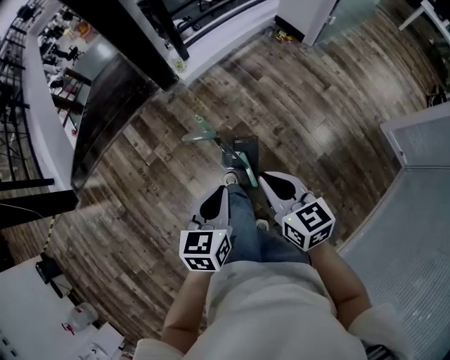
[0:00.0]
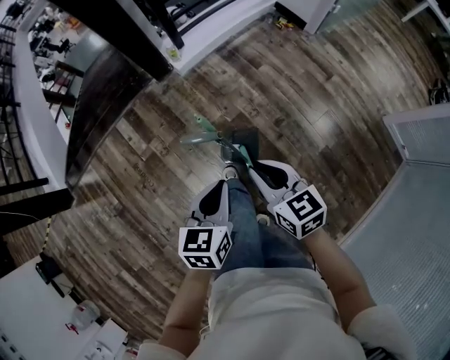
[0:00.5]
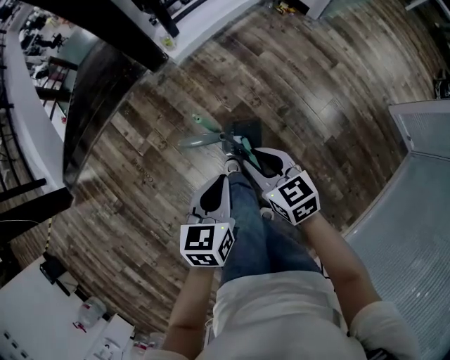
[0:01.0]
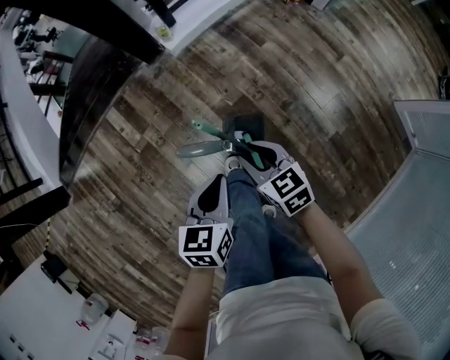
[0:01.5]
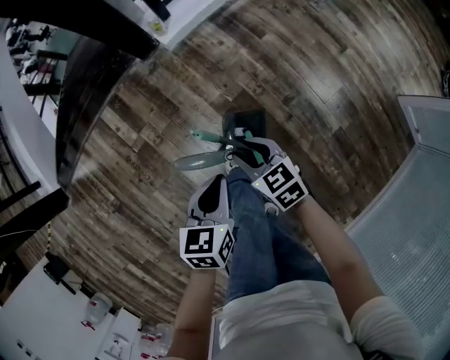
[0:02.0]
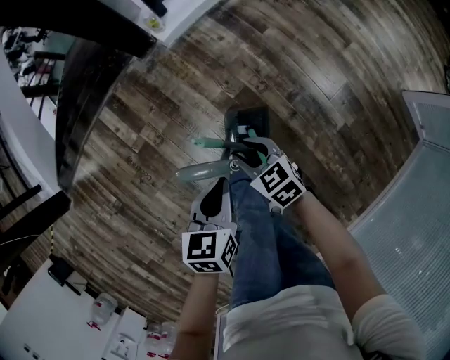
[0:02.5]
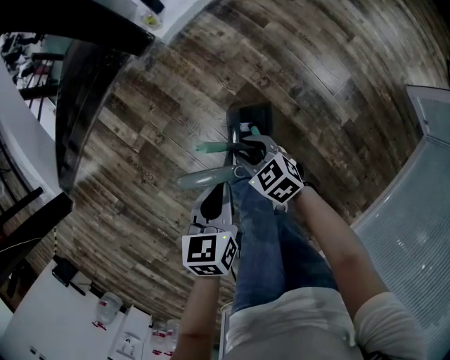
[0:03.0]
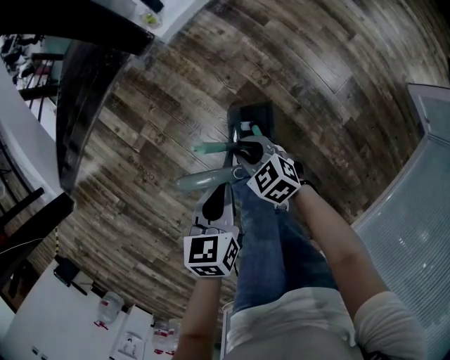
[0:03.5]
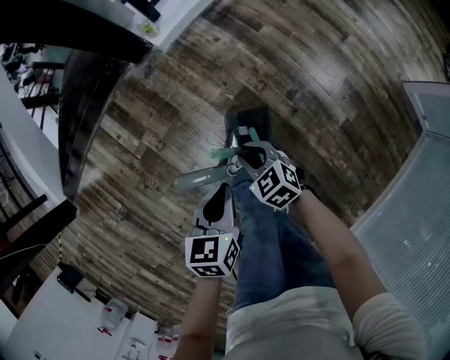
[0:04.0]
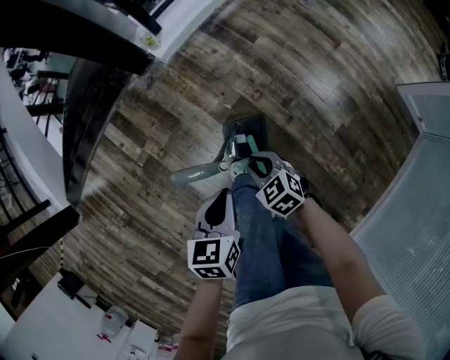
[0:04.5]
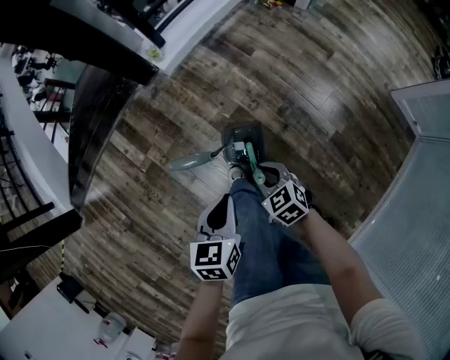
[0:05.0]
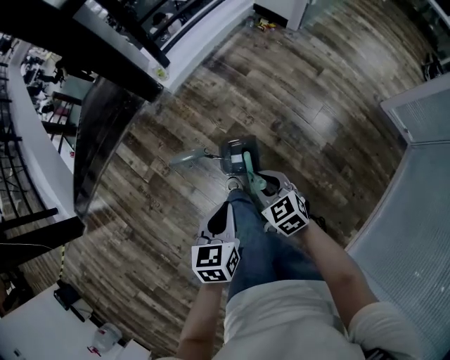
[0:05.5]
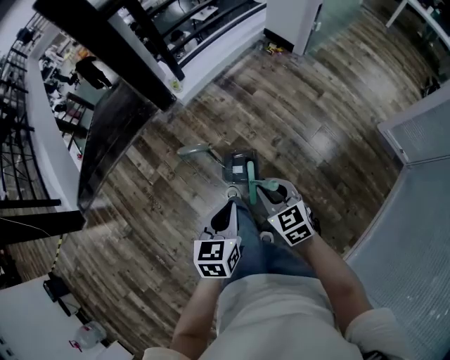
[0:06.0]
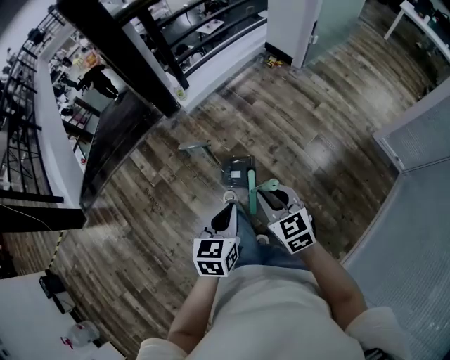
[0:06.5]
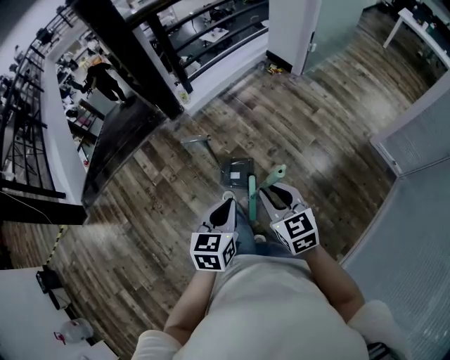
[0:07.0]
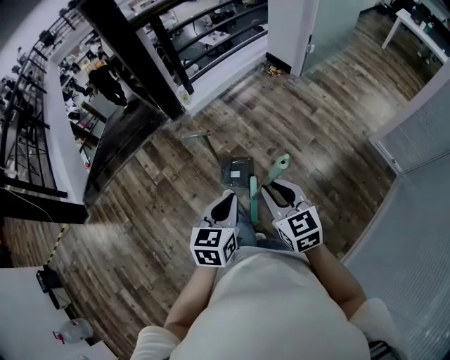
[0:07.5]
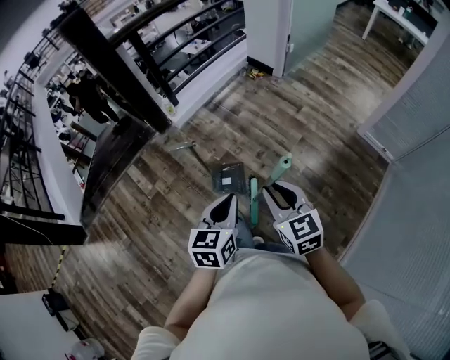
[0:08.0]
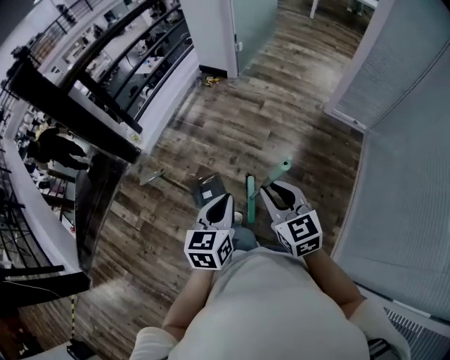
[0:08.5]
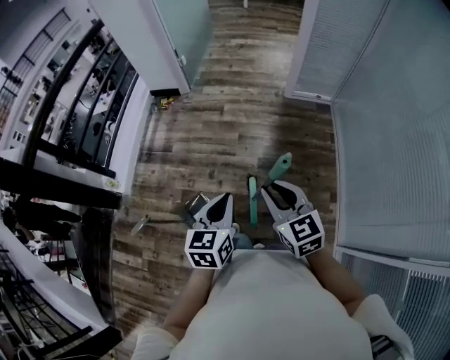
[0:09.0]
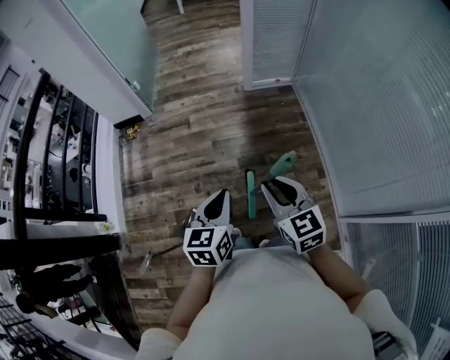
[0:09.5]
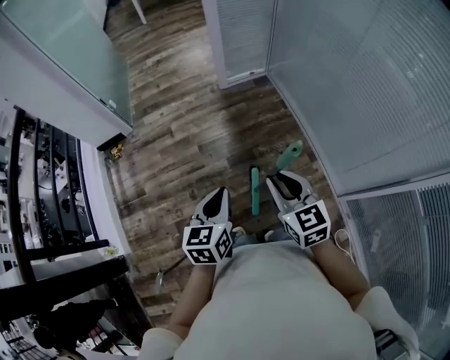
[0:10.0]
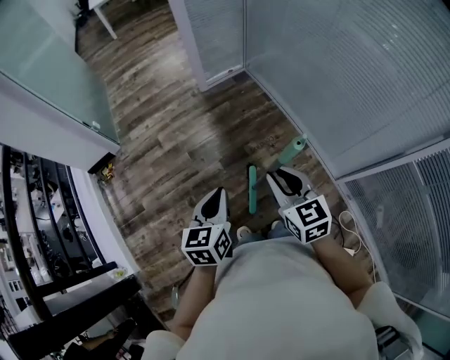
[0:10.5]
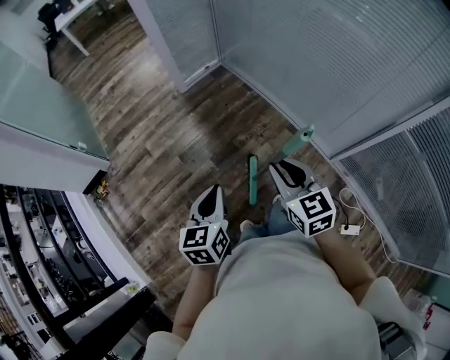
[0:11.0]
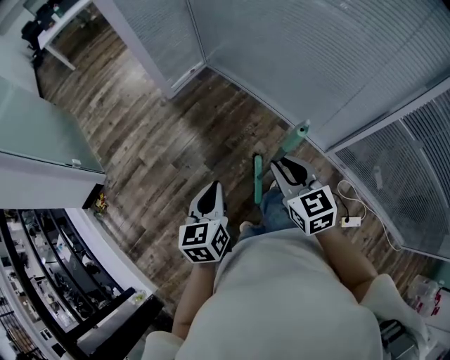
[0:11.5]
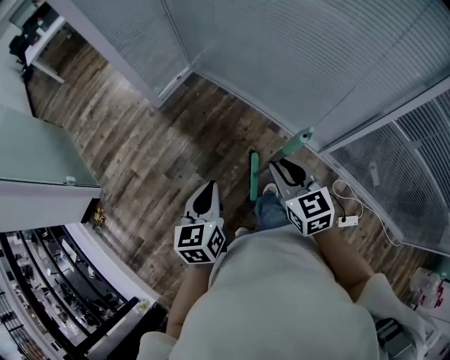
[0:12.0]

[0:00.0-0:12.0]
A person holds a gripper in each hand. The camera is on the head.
0:00.0 to 0:02.0: Both grippers move downward and forward, some 25 cm. The right gripper changes its angle by approximately 20 degrees, and opens its fingers.
0:02.0 to 0:04.0: The right gripper heads downward, covering about 10 cm.
0:04.0 to 0:06.0: The right gripper goes roughly 30 cm upward, backward and to the right, and swivels some 20 degrees. Meanwhile the left gripper is displaced upward and backward by some 25 cm.
0:06.0 to 0:08.0: The right gripper goes roughly 20 cm upward, backward and to the right. Meanwhile the left gripper moves backward, upward and to the right, approximately 15 cm.
0:08.0 to 0:10.0: The right gripper shifts by about 20 cm, and rotates roughly 60 degrees; the left gripper ends up about 25 cm from where it was, and swivels roughly 60 degrees.
0:10.0 to 0:12.0: The left gripper ends up some 15 cm from where it was, and swivels roughly 20 degrees; the right gripper changes place by roughly 15 cm, and swivels some 30 degrees.

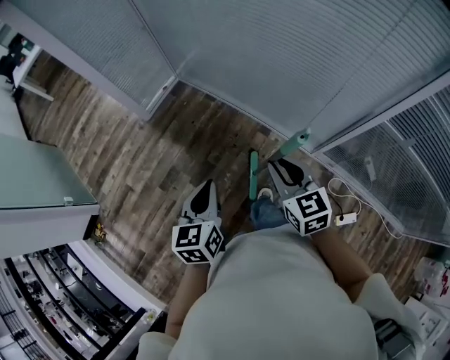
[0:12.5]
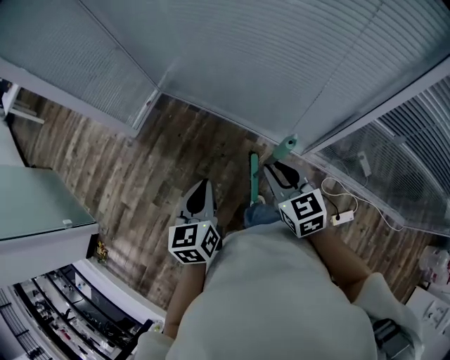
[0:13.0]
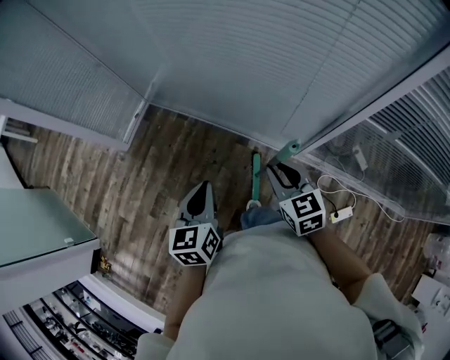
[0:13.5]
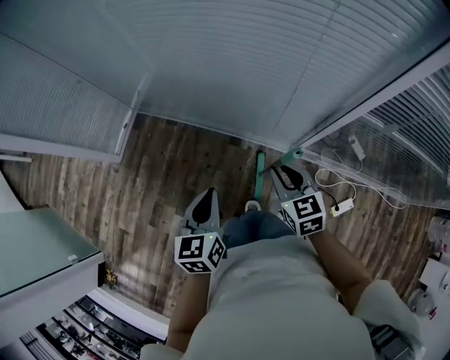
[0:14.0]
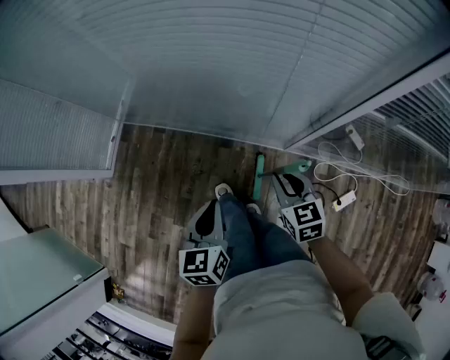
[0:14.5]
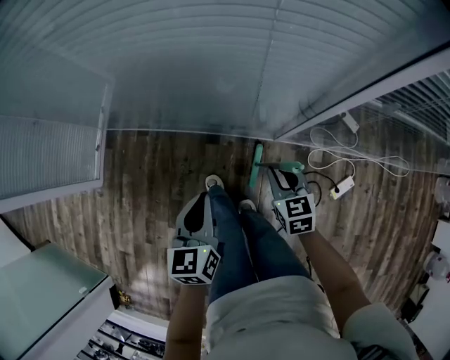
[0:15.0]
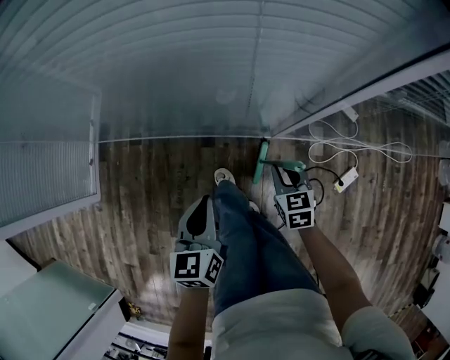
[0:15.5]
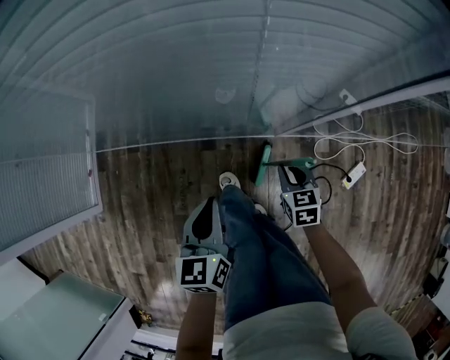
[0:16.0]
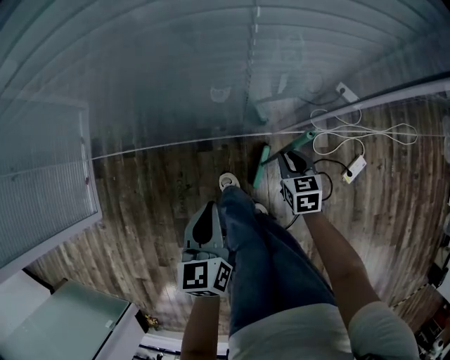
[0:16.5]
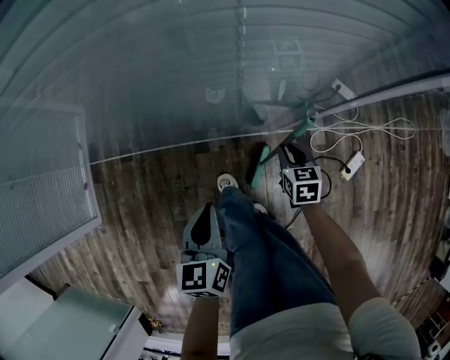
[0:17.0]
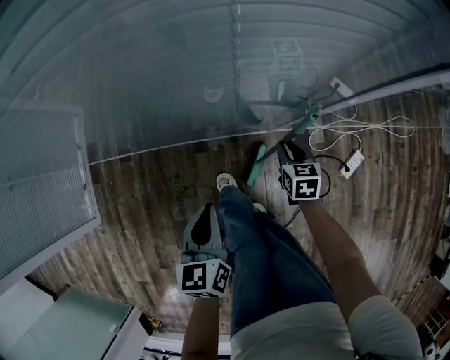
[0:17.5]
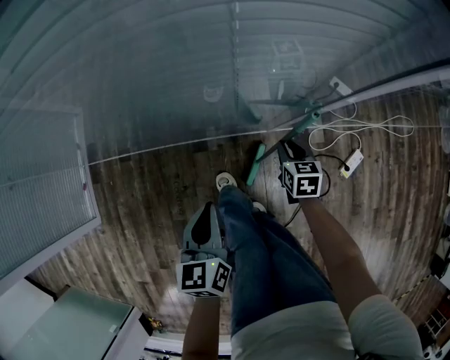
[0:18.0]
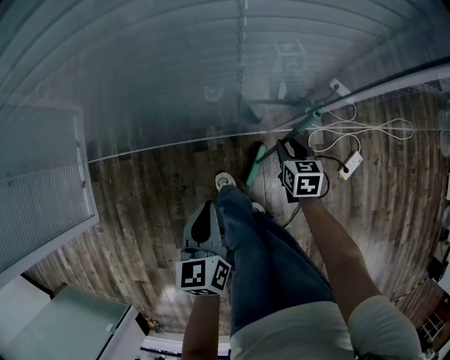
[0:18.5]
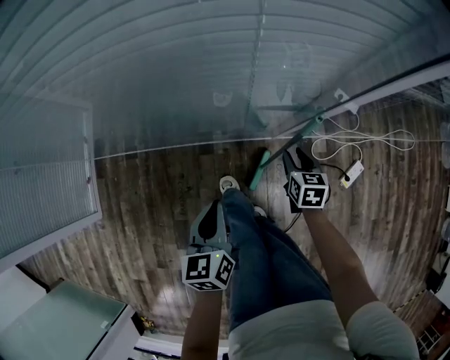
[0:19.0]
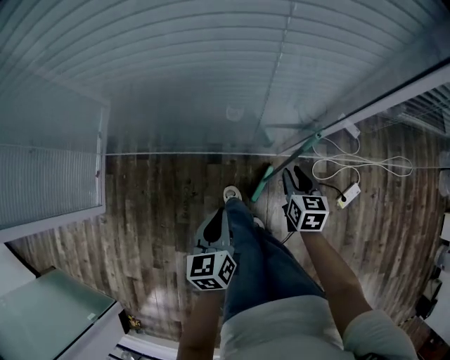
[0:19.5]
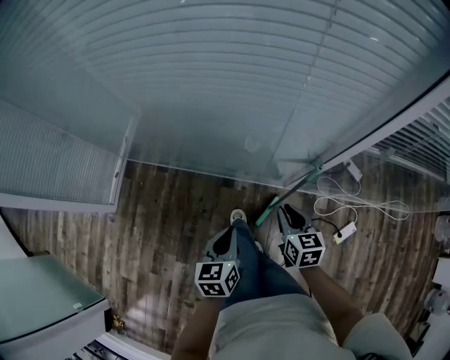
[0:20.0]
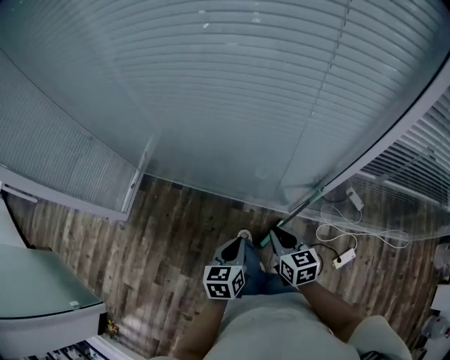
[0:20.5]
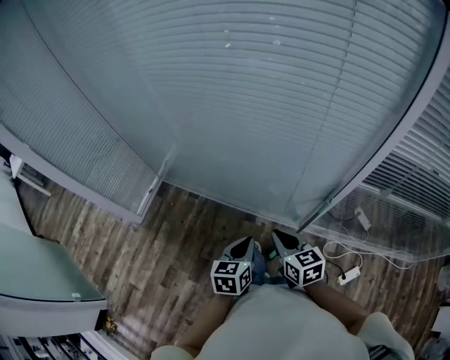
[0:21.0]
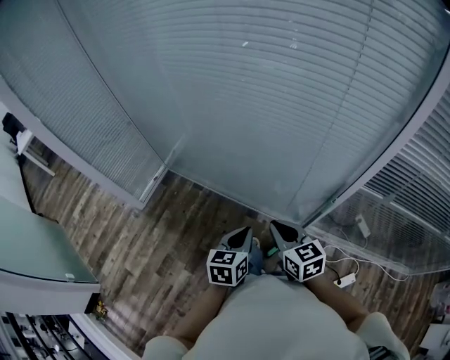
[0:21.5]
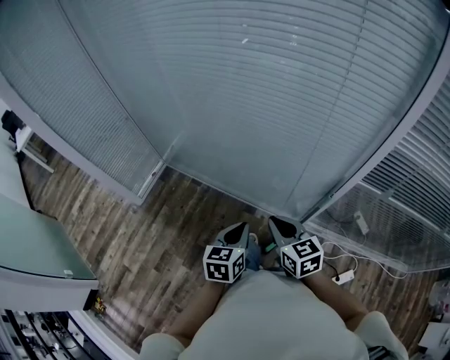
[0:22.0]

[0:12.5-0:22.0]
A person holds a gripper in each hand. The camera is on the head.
0:12.5 to 0:14.5: The left gripper goes some 30 cm to the right, forward and downward, and rotates about 20 degrees. Meanwhile the right gripper goes roughly 30 cm to the right, downward and forward, and rotates about 30 degrees.
0:14.5 to 0:16.5: The right gripper goes roughly 25 cm downward and to the right, and turns by about 30 degrees; the left gripper travels downward and forward by approximately 20 cm.
0:16.5 to 0:18.0: The grippers make only small movements.
0:18.0 to 0:20.0: The left gripper heads upward and backward, covering approximately 10 cm, while the right gripper travels upward and backward by some 25 cm, and turns by approximately 20 degrees.
0:20.0 to 0:22.0: The left gripper shifts roughly 10 cm upward, while the right gripper heads upward and to the left, covering about 20 cm, and turns by about 30 degrees.

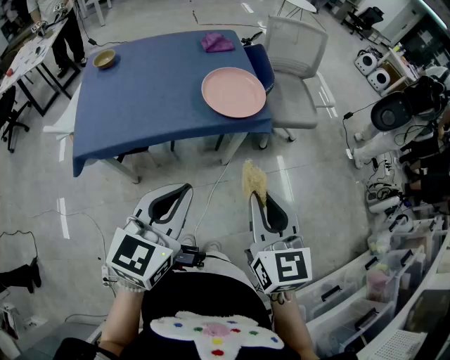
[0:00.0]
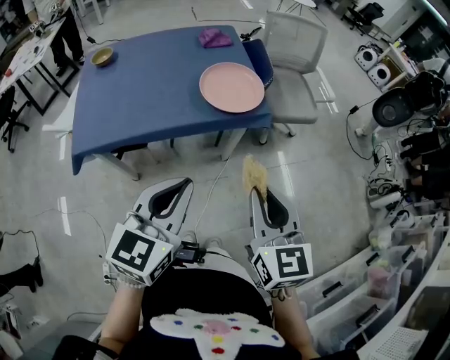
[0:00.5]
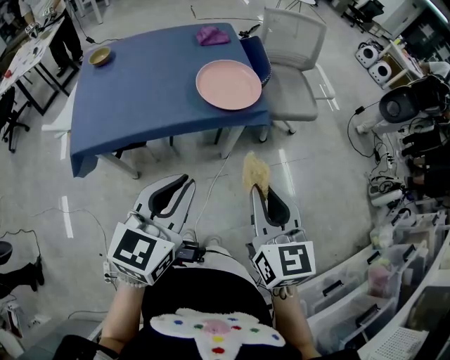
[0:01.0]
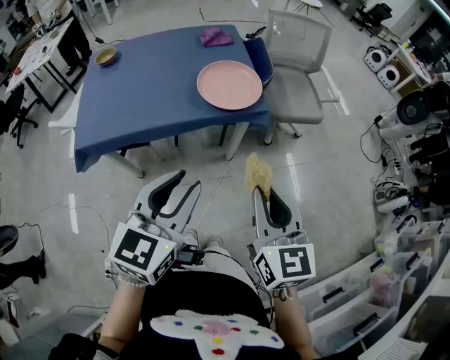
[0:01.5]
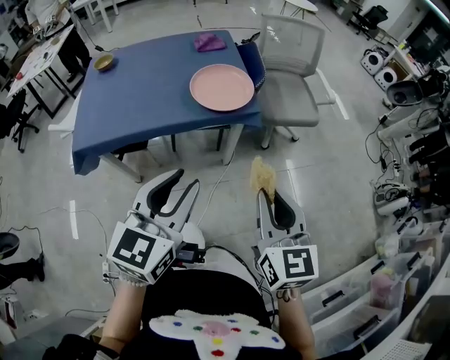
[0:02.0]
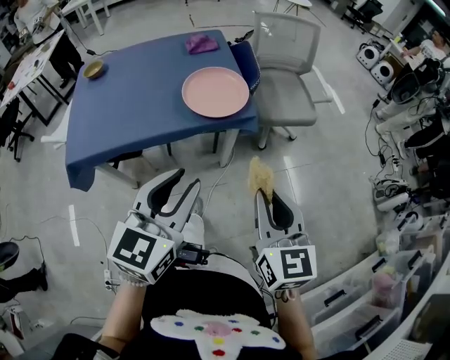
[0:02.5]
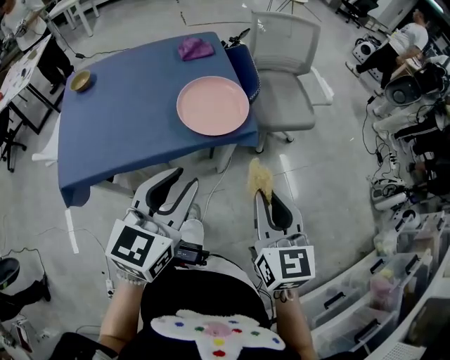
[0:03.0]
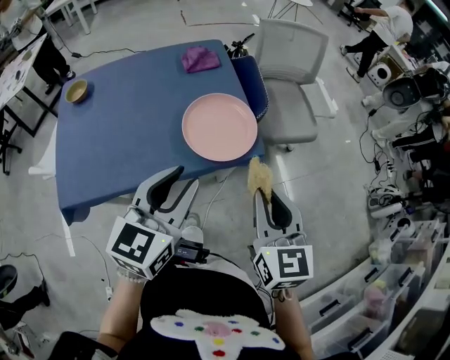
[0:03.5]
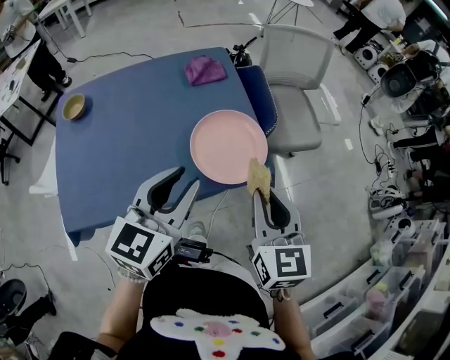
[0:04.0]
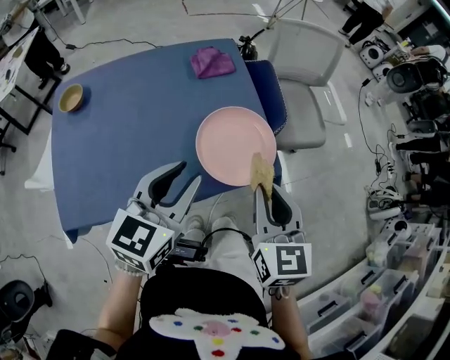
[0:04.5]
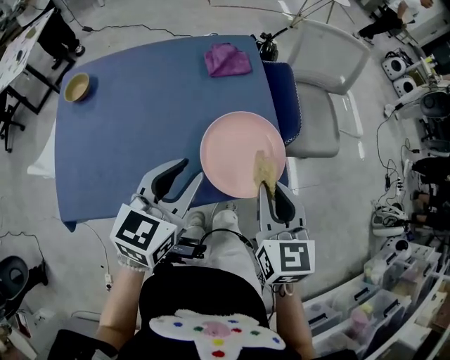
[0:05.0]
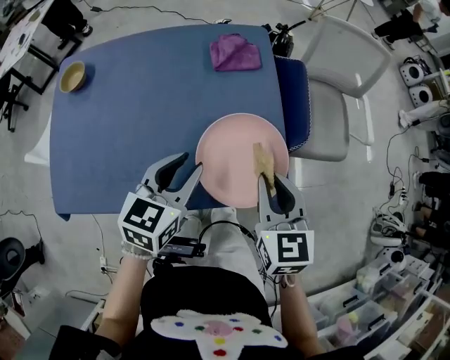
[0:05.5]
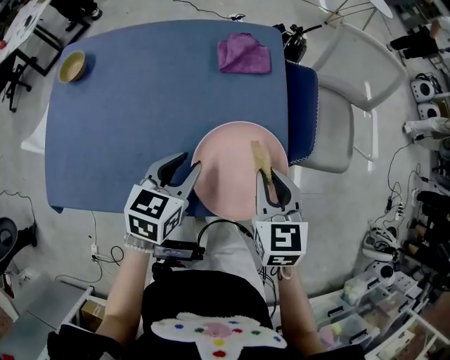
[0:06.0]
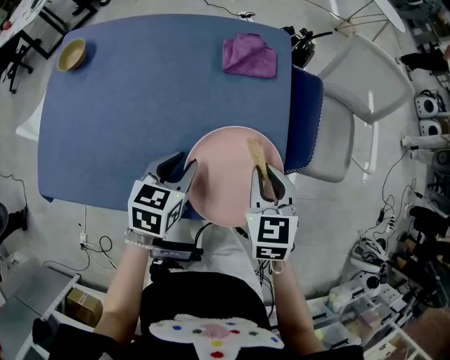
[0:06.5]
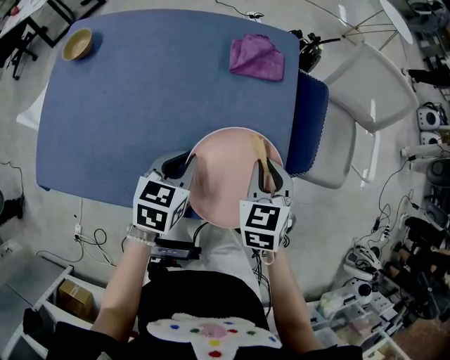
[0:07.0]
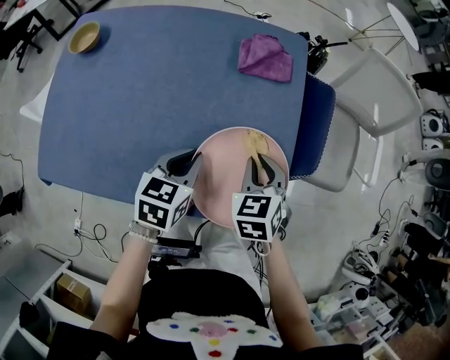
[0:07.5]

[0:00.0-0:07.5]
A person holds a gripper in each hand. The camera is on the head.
0:00.0 to 0:02.0: The grippers both shift to the right by some 5 cm. The left gripper opens up.
0:02.0 to 0:04.0: Both grippers travel together forward and to the left, about 25 cm.
0:04.0 to 0:05.5: The left gripper is displaced downward and forward by some 15 cm; the right gripper moves forward and downward, roughly 15 cm.
0:05.5 to 0:07.5: The right gripper is displaced downward and forward by about 15 cm, and rotates roughly 30 degrees, while the left gripper shifts some 10 cm downward, and closes.
